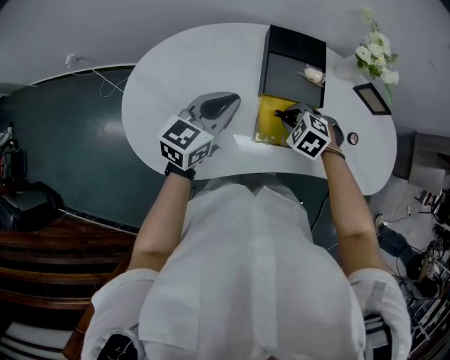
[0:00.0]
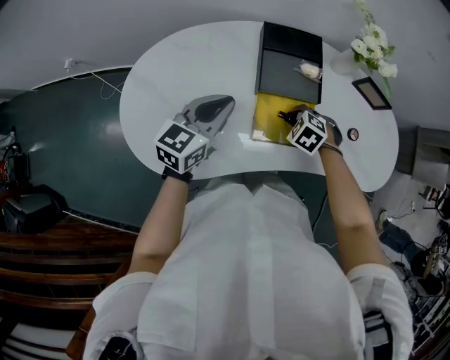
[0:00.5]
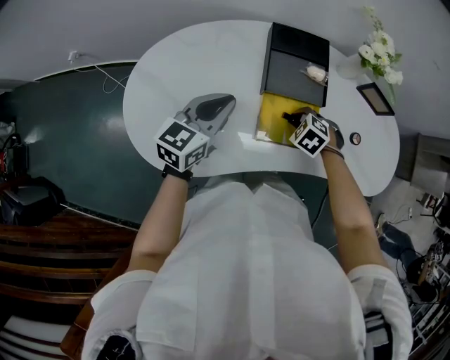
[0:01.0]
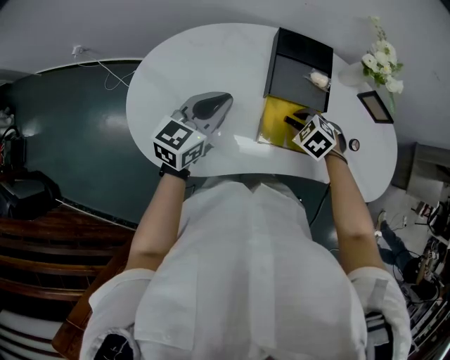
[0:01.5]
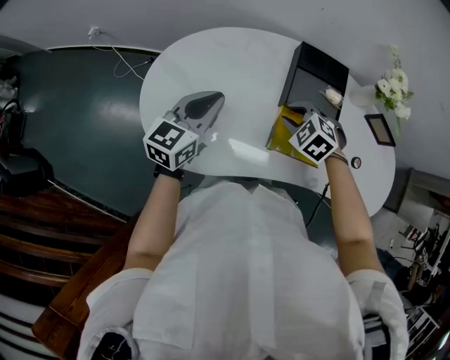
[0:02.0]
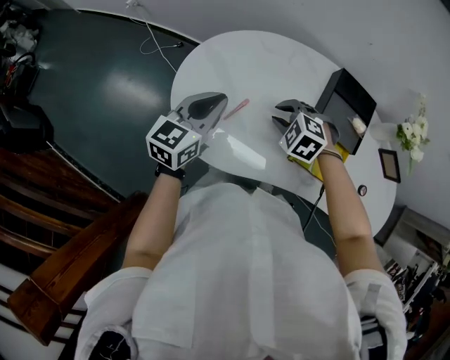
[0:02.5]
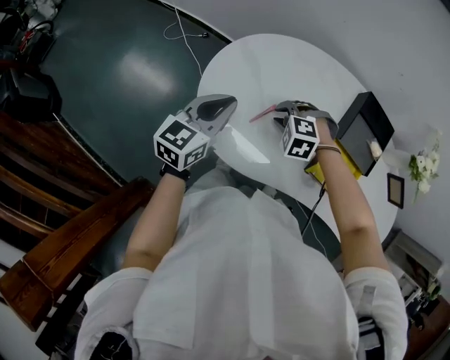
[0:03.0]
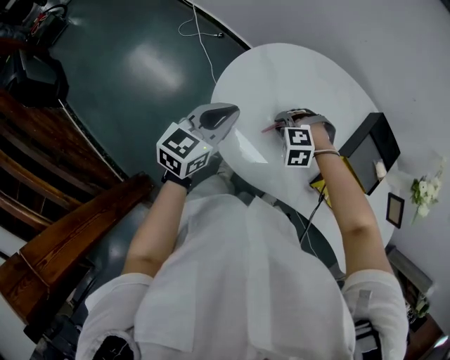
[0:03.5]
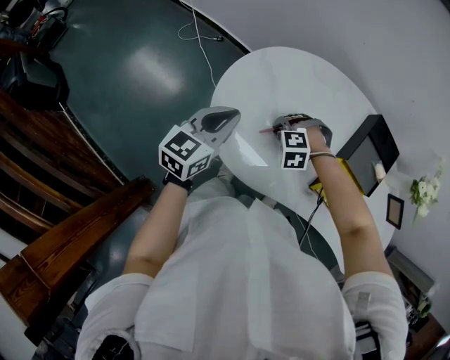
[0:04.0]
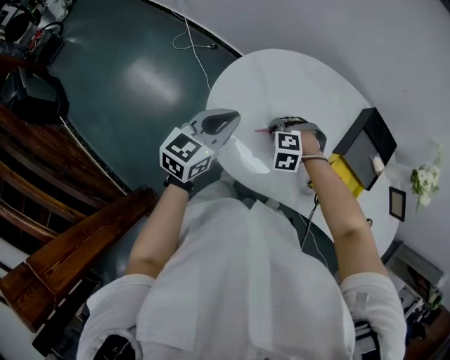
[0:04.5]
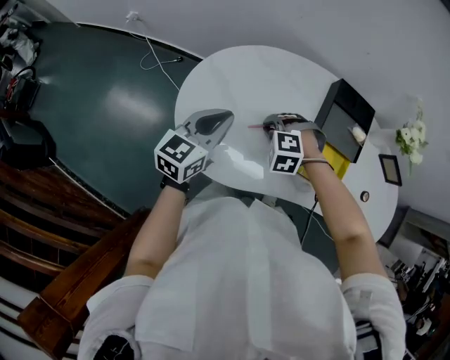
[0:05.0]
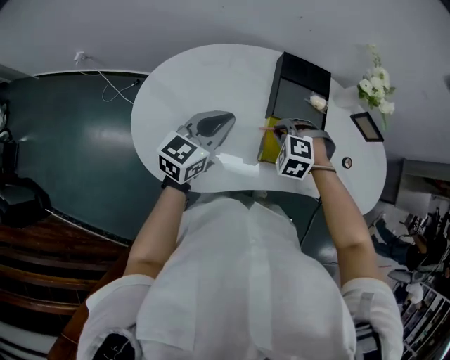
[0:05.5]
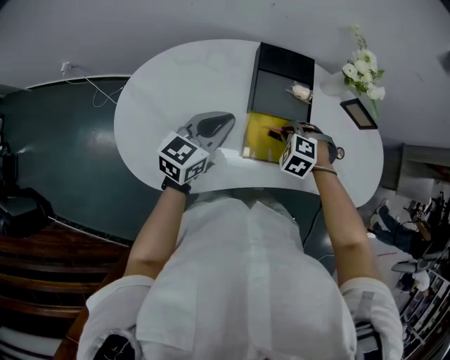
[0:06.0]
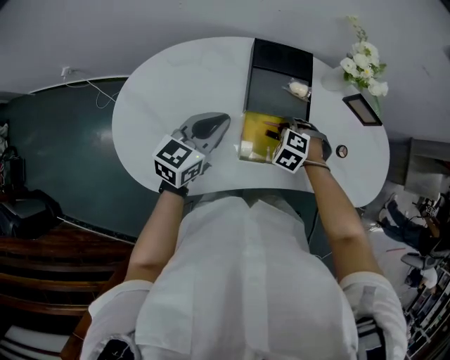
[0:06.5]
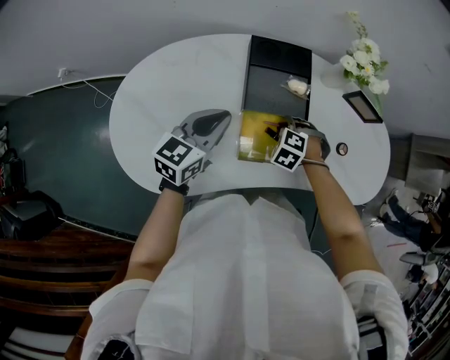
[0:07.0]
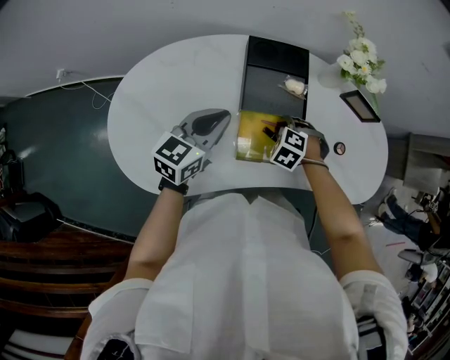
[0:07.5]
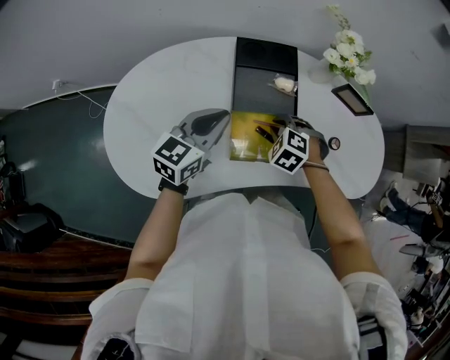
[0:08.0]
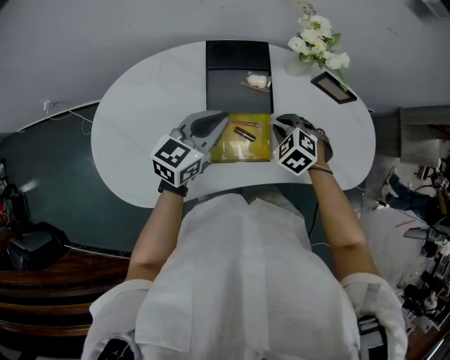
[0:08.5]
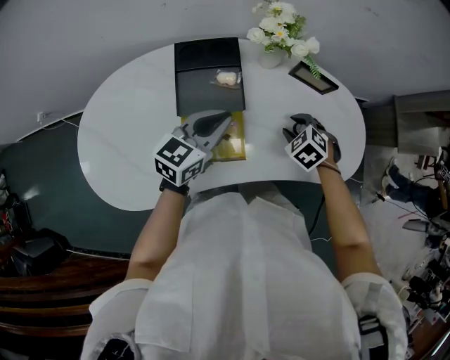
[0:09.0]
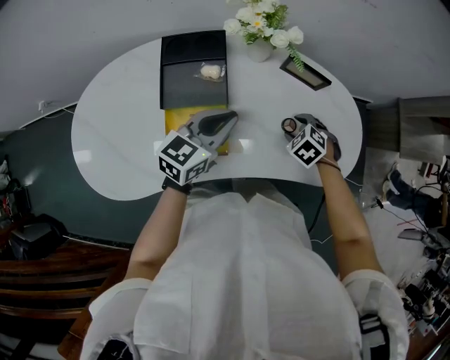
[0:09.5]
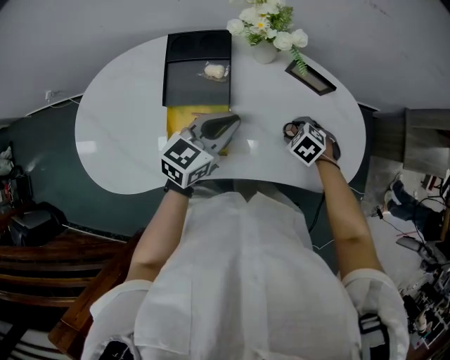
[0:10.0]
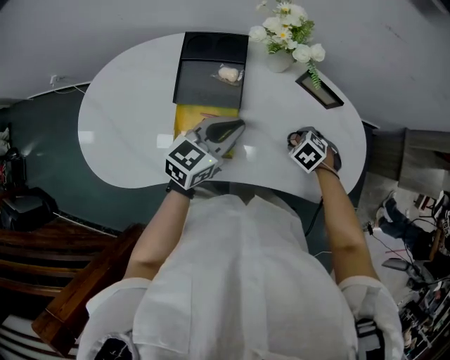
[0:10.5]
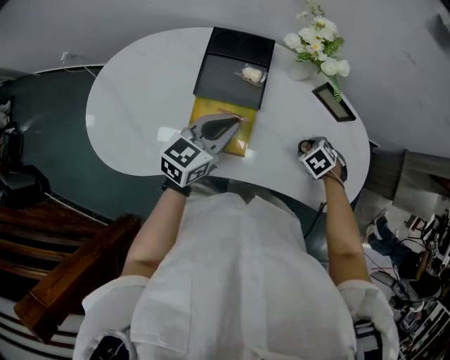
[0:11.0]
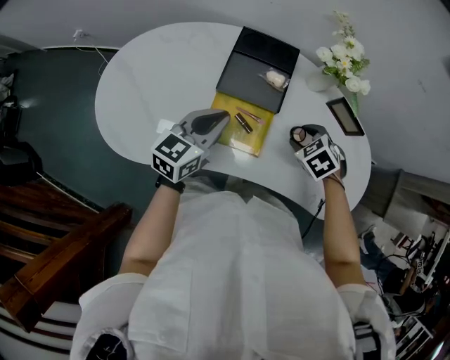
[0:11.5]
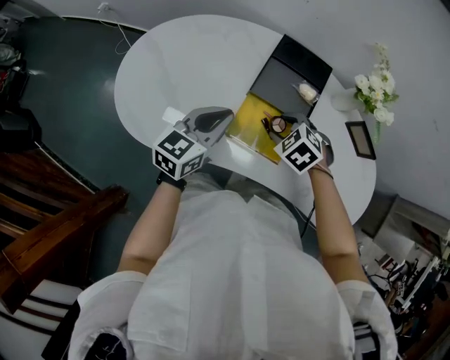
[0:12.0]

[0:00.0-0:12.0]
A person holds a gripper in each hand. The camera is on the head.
0:00.0 to 0:02.0: Both grippers move to the left, roughly 10 cm.
0:02.0 to 0:04.0: The left gripper changes place by about 20 cm. Meanwhile the right gripper changes place by about 25 cm, and rolls counterclockwise, seen from behind, by approximately 50 degrees.
0:04.0 to 0:06.0: The left gripper moves some 30 cm, and turns by some 30 degrees, while the right gripper shifts by some 35 cm, and twists approximately 50 degrees clockwise, seen from behind.
0:06.0 to 0:08.0: The grippers stay close to where they were, moving slightly.
0:08.0 to 0:10.0: The left gripper moves some 25 cm, while the right gripper shifts by approximately 25 cm, and opens.
0:10.0 to 0:12.0: The right gripper ends up some 30 cm from where it was, and rotates roughly 30 degrees; the left gripper shifts by roughly 25 cm, and turns by approximately 30 degrees.

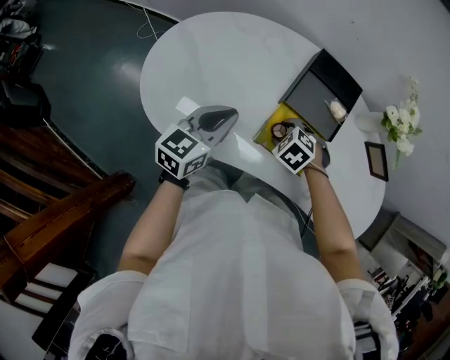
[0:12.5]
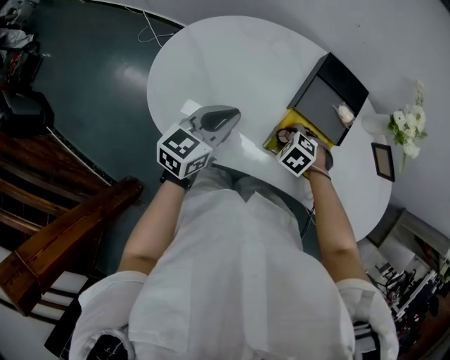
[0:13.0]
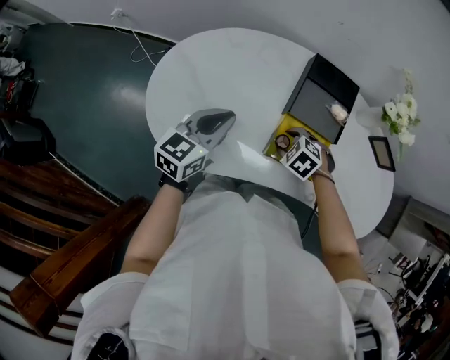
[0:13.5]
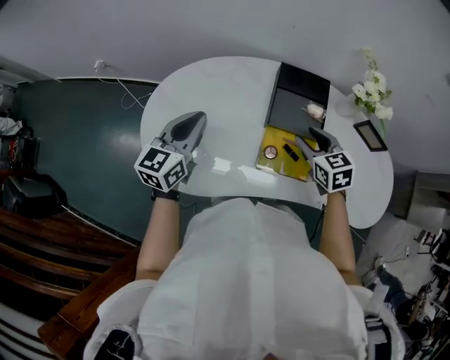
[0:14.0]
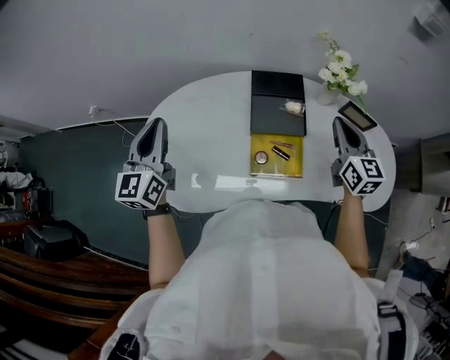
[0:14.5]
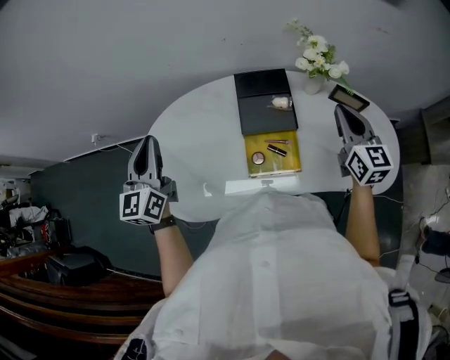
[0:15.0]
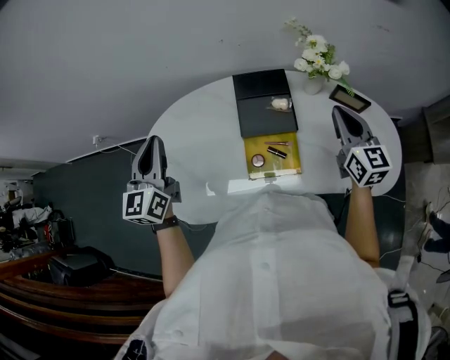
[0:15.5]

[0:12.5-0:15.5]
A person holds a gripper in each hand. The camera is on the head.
0:12.5 to 0:14.0: The right gripper is displaced upward by approximately 15 cm, and angles its fingers upward, by about 40 degrees, while the left gripper shifts by roughly 15 cm.
0:14.0 to 0:15.5: The right gripper shifts approximately 20 cm to the right and upward, swivels about 40 degrees, and closes. The left gripper moves upward, approximately 10 cm.

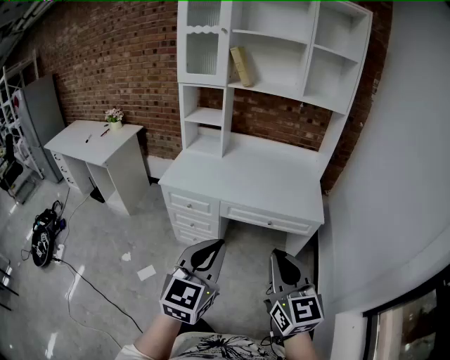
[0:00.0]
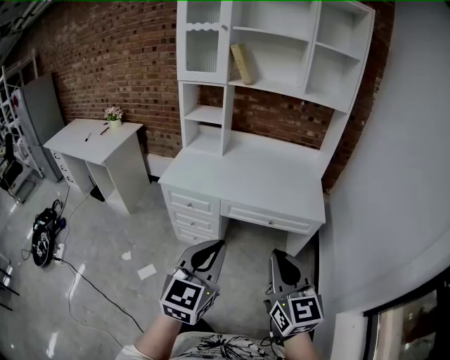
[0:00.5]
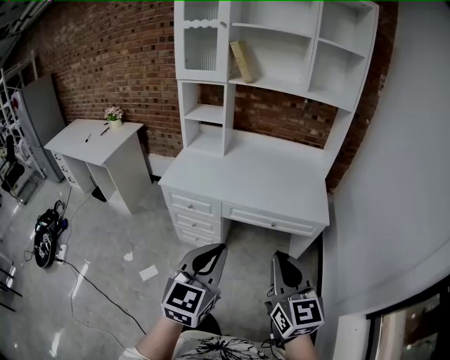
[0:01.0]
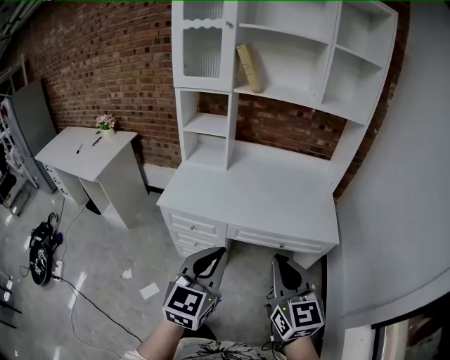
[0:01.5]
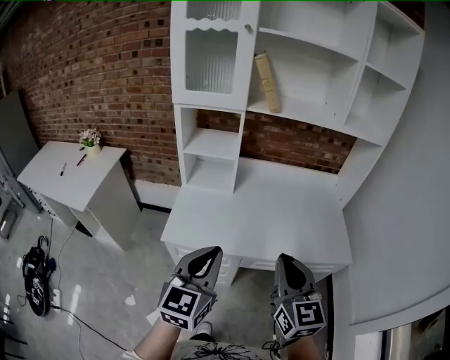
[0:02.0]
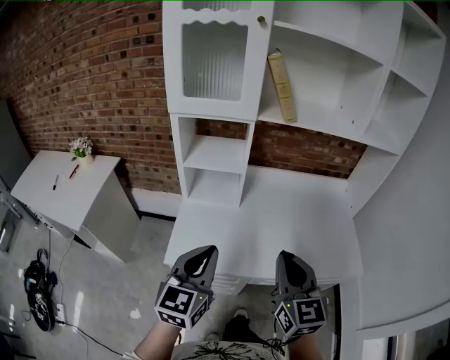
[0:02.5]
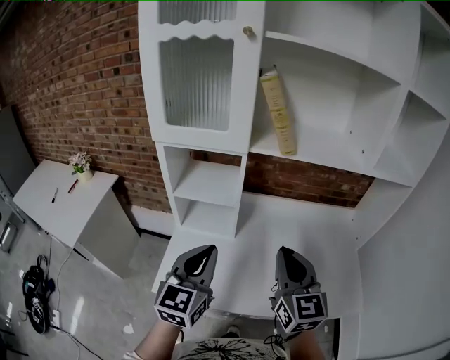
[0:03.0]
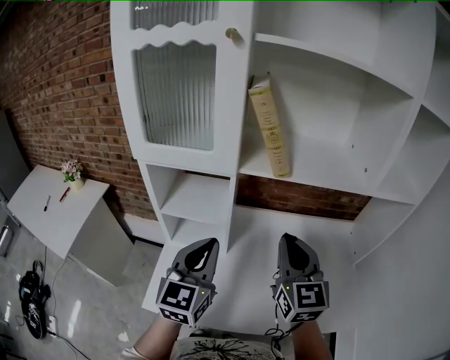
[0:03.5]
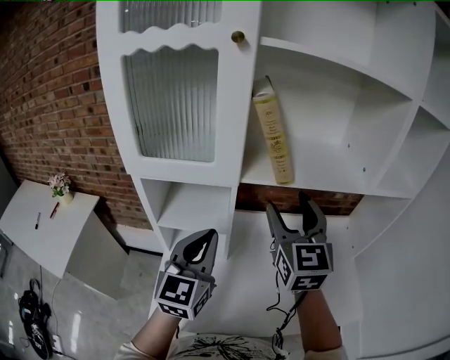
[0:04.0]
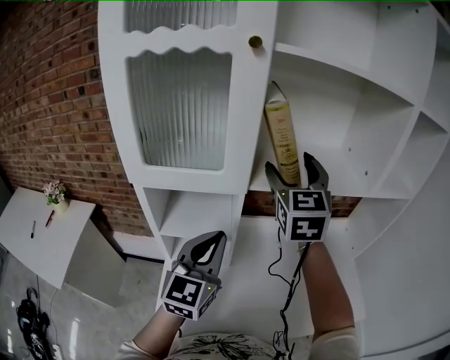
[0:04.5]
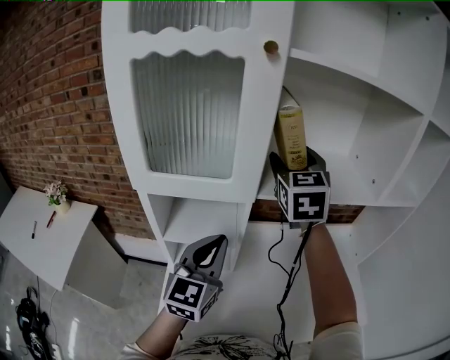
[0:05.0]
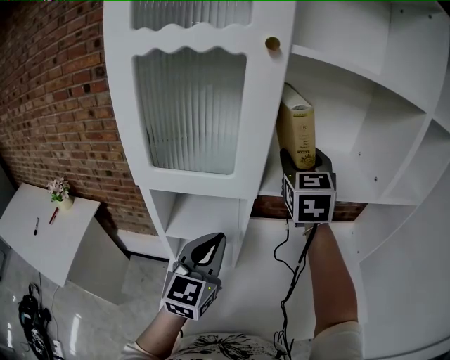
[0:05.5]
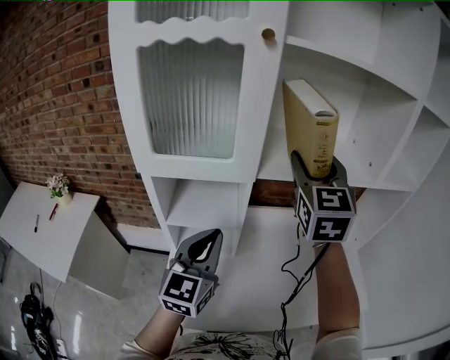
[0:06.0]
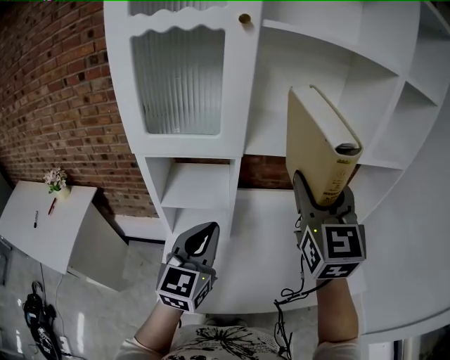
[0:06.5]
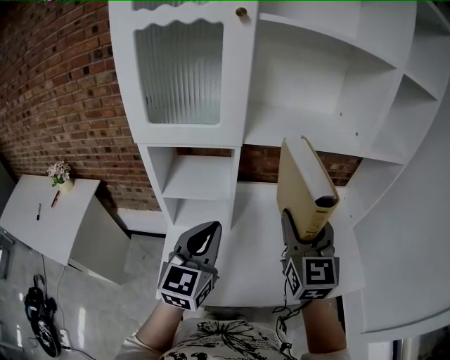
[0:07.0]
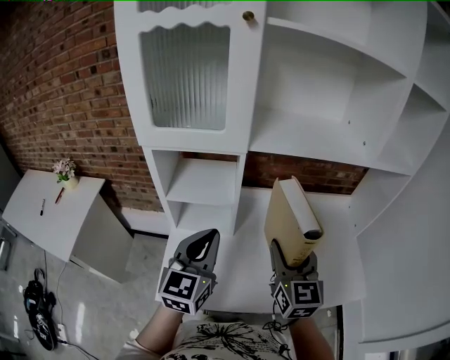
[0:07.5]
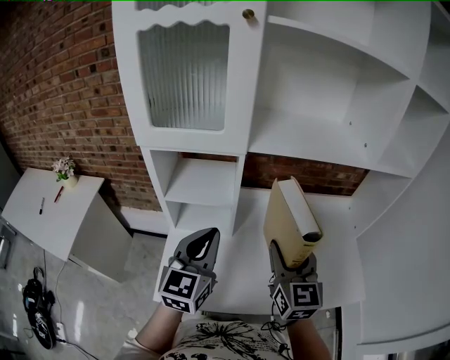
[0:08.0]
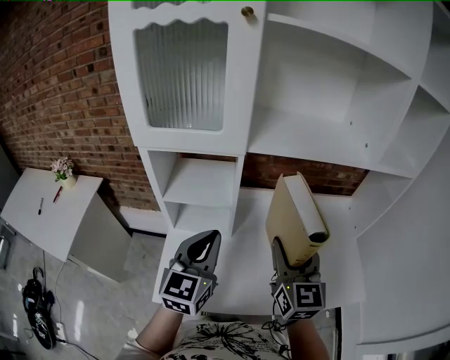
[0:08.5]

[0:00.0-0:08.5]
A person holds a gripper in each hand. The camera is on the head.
0:00.0 to 0:02.0: The grippers both shift forward and to the left by some 40 cm.
0:02.0 to 0:04.0: The pair of grippers is taken forward, about 40 cm. The right gripper opens up.
0:04.0 to 0:06.5: The left gripper heads backward, covering approximately 5 cm, while the right gripper goes approximately 5 cm upward, and goes forward and returns, some 15 cm each way.
0:06.5 to 0:08.5: The right gripper moves downward, approximately 20 cm.

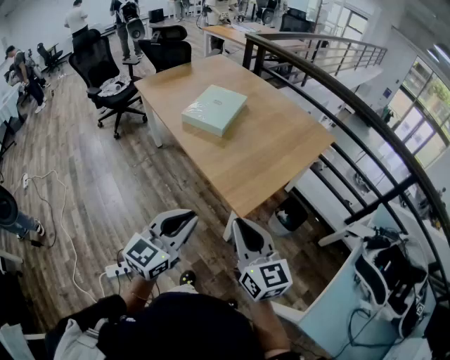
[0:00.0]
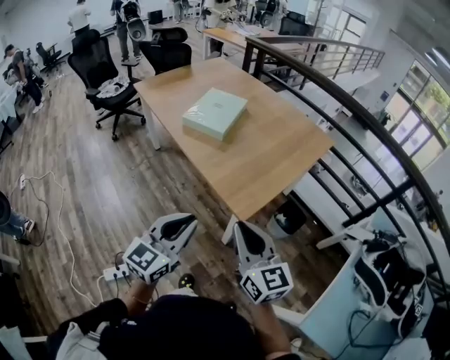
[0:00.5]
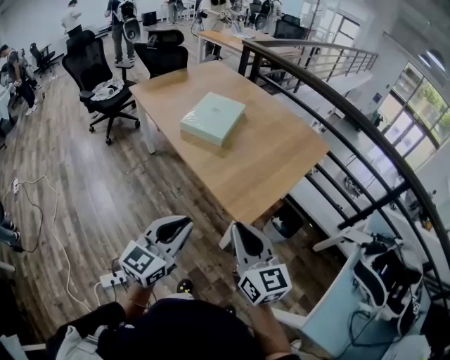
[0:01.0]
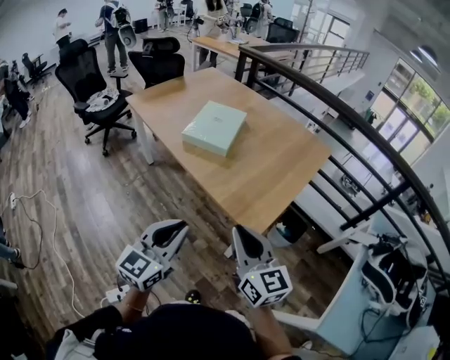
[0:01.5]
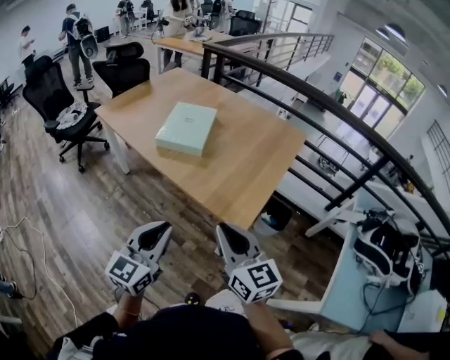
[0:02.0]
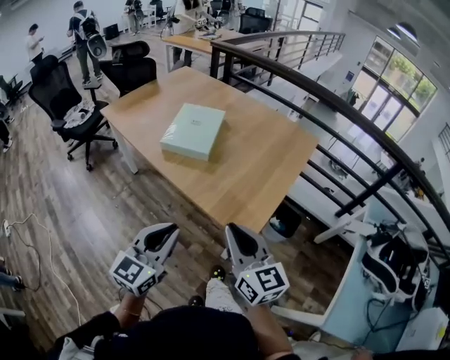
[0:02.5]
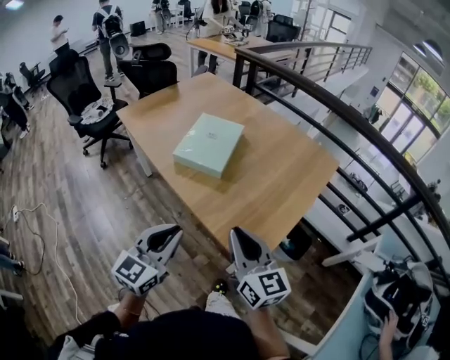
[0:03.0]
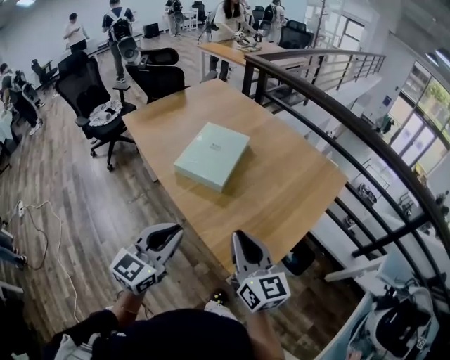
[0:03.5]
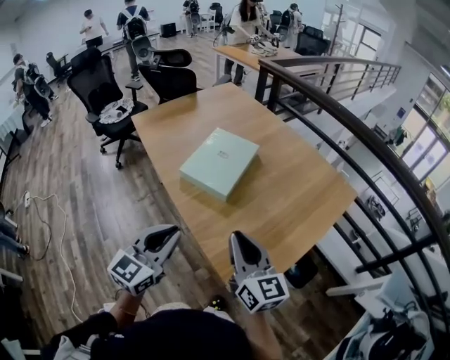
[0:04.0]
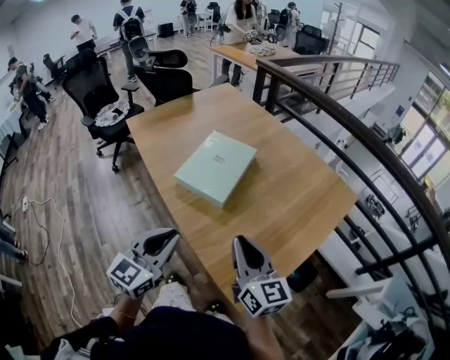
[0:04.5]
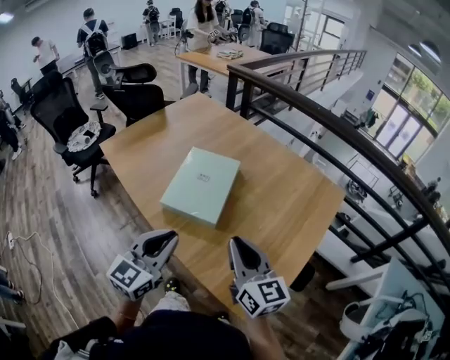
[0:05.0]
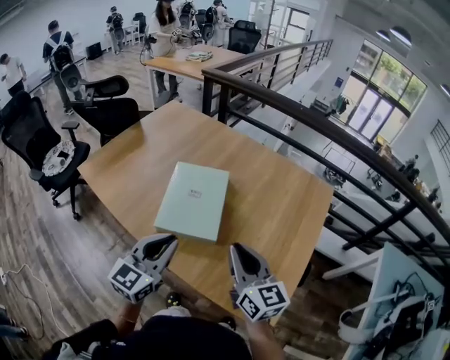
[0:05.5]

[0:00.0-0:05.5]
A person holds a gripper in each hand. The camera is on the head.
0:00.0 to 0:02.0: The left gripper is displaced to the left and forward by approximately 15 cm. Meanwhile the right gripper goes about 10 cm to the left.
0:02.0 to 0:03.5: The two grippers go about 20 cm forward.
0:03.5 to 0:05.5: The two grippers go approximately 20 cm forward.
